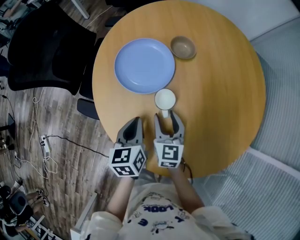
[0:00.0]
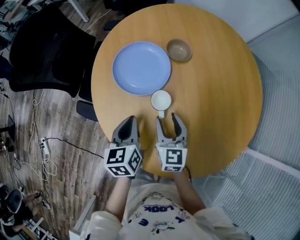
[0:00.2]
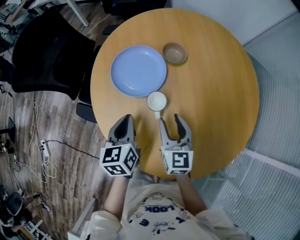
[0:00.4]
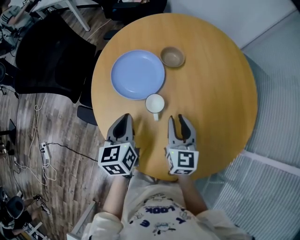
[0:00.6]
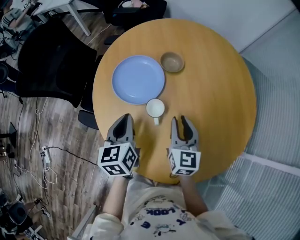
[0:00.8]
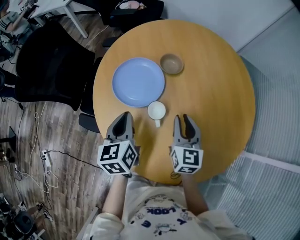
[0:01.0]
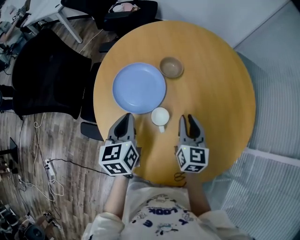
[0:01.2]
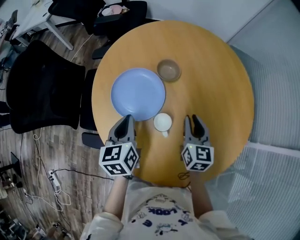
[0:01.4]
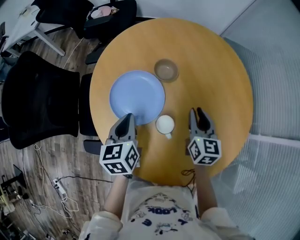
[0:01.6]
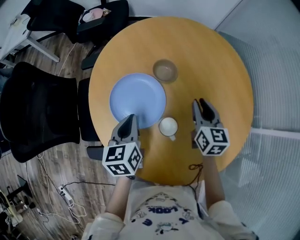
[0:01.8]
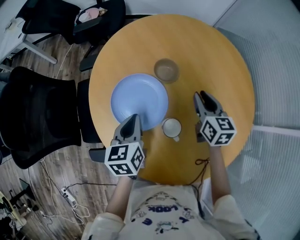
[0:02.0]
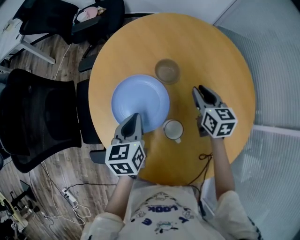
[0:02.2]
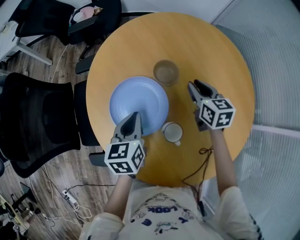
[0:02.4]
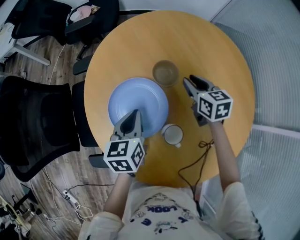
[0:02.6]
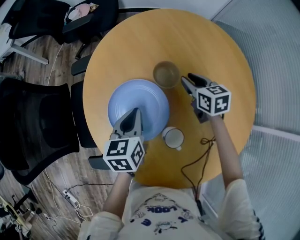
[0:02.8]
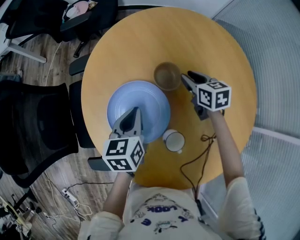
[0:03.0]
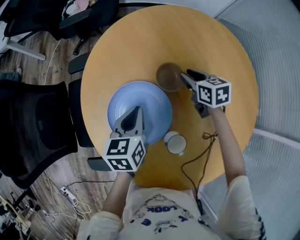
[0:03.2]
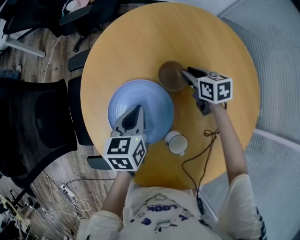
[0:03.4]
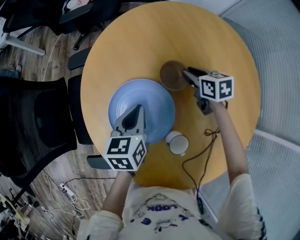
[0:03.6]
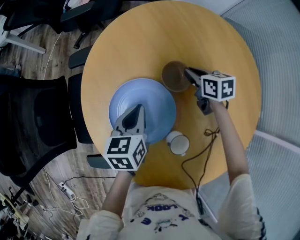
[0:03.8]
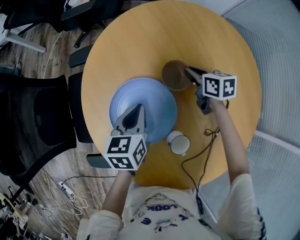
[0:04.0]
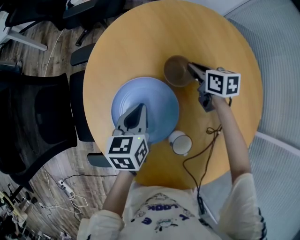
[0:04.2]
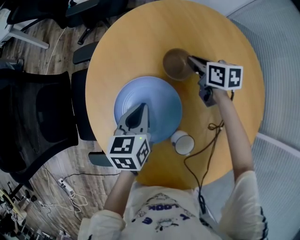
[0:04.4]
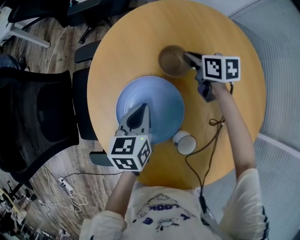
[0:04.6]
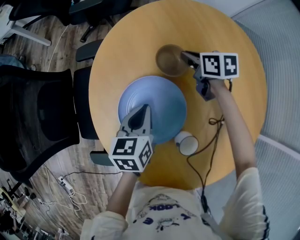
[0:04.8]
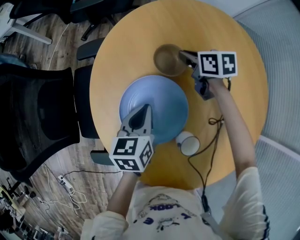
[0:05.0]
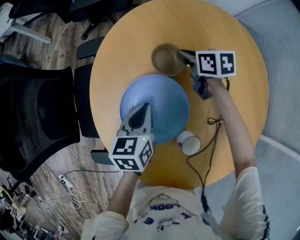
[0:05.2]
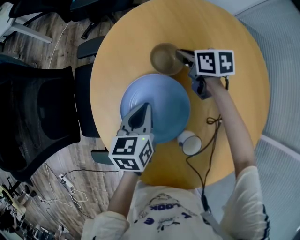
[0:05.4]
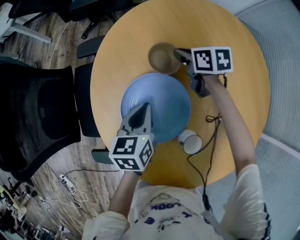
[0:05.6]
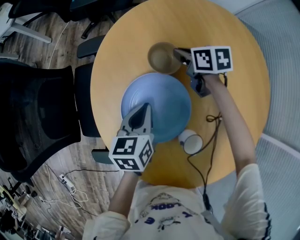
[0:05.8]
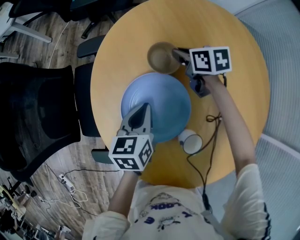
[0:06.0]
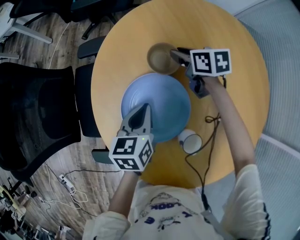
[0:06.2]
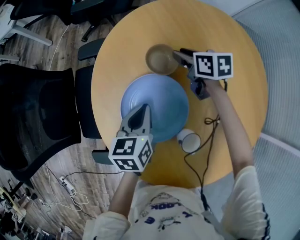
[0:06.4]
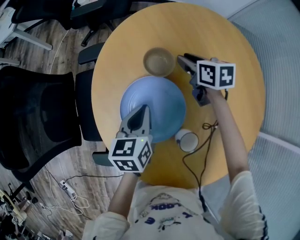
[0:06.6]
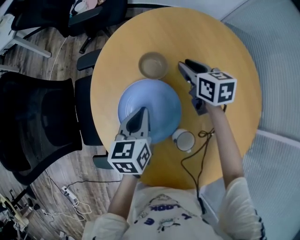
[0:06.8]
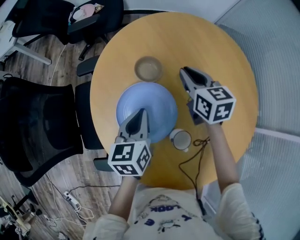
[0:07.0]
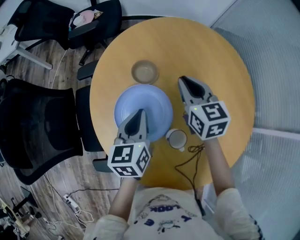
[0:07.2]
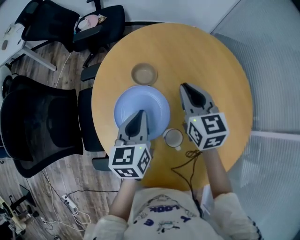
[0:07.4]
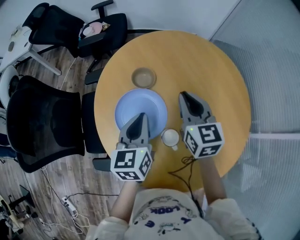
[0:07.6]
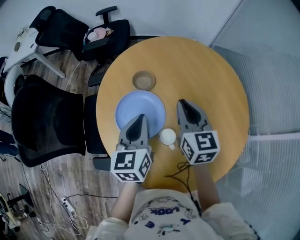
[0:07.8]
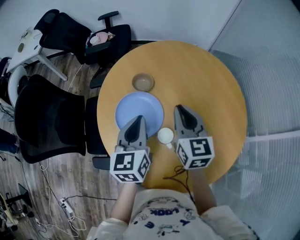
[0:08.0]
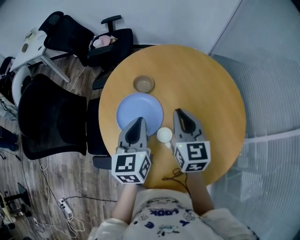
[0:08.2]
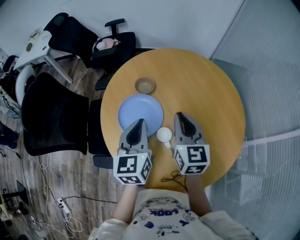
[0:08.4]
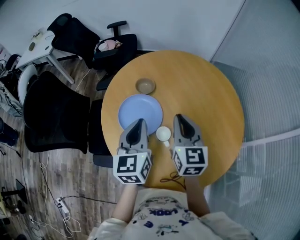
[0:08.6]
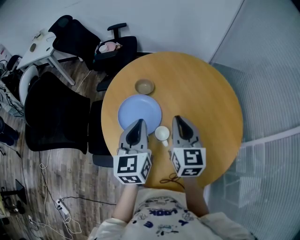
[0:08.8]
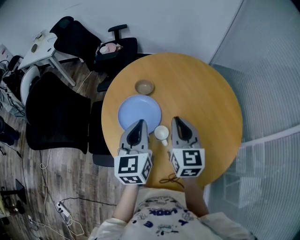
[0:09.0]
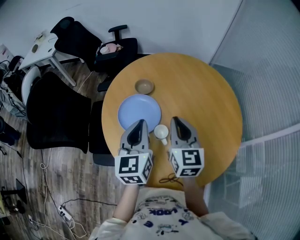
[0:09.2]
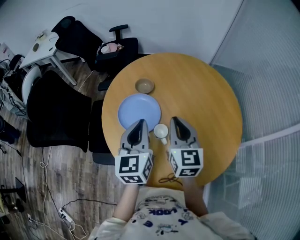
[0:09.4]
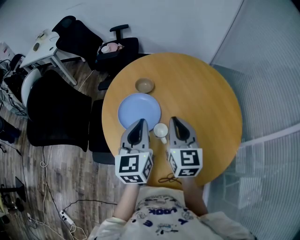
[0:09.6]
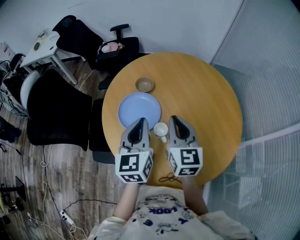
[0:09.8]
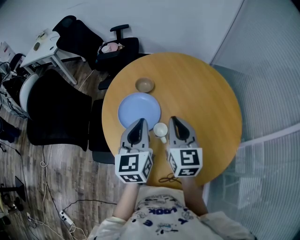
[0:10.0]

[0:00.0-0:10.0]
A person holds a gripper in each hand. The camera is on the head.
0:00.0 to 0:01.4: The left gripper heads forward and upward, covering about 15 cm. The right gripper is displaced to the right, upward and forward by about 15 cm, and closes.
0:01.4 to 0:02.8: The right gripper goes about 20 cm forward, and rotates approximately 20 degrees. The left gripper heads forward, covering some 15 cm.
0:02.8 to 0:04.2: The right gripper shifts roughly 5 cm forward, and closes.
0:04.2 to 0:05.8: The right gripper shifts about 10 cm to the left and forward.
0:05.8 to 0:07.2: The left gripper shifts some 10 cm upward. Meanwhile the right gripper goes approximately 20 cm upward and backward, swivels about 40 degrees, and opens and closes again.
0:07.2 to 0:08.6: The right gripper goes approximately 20 cm backward and upward. The left gripper moves upward and backward, some 20 cm, and turns by about 20 degrees.
0:08.6 to 0:10.0: The grippers move only a little.

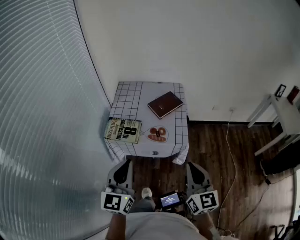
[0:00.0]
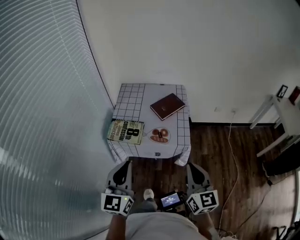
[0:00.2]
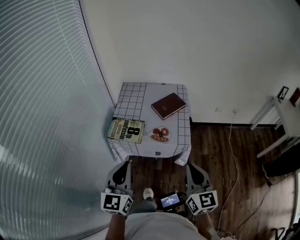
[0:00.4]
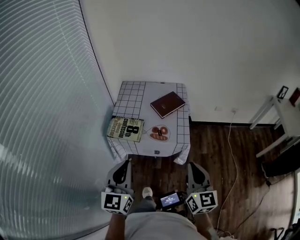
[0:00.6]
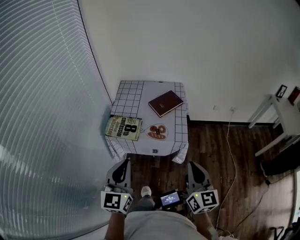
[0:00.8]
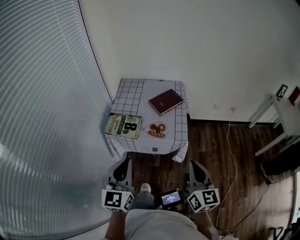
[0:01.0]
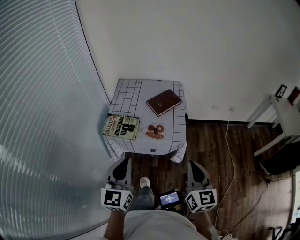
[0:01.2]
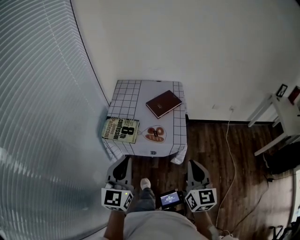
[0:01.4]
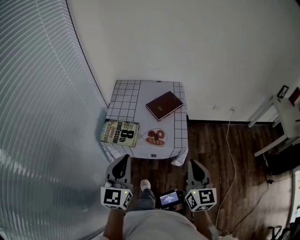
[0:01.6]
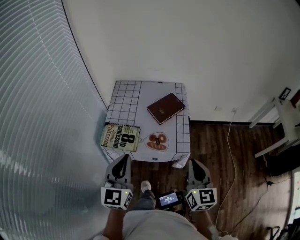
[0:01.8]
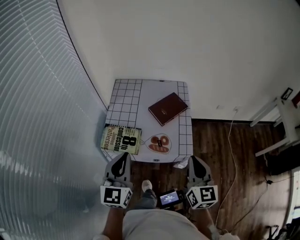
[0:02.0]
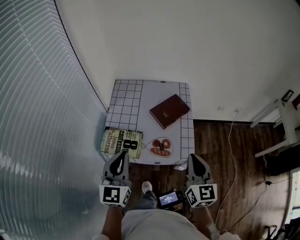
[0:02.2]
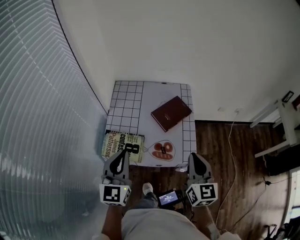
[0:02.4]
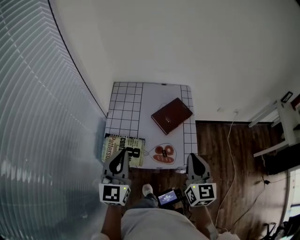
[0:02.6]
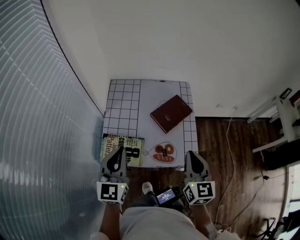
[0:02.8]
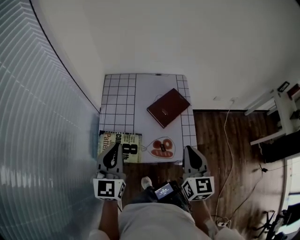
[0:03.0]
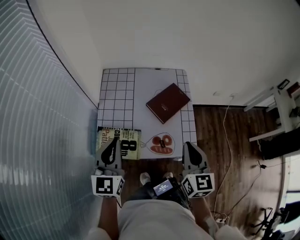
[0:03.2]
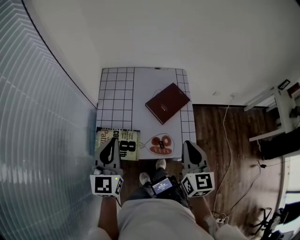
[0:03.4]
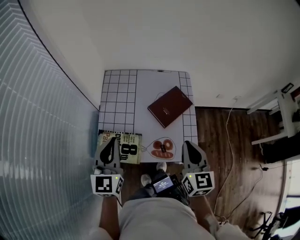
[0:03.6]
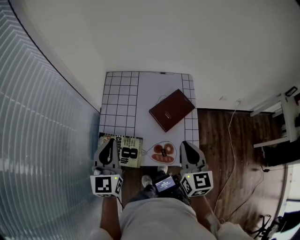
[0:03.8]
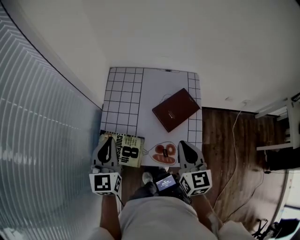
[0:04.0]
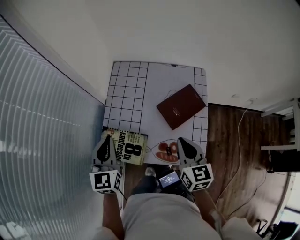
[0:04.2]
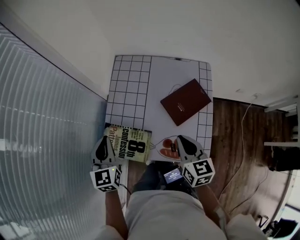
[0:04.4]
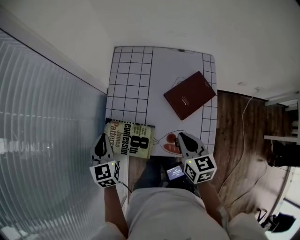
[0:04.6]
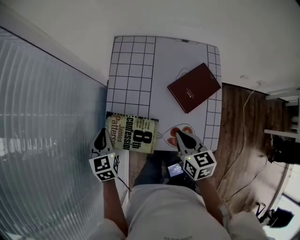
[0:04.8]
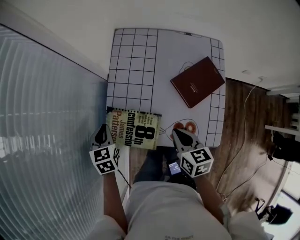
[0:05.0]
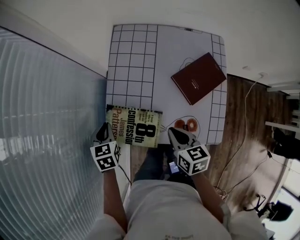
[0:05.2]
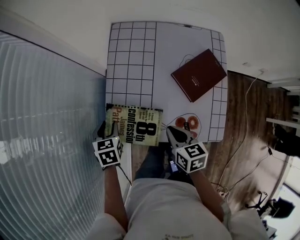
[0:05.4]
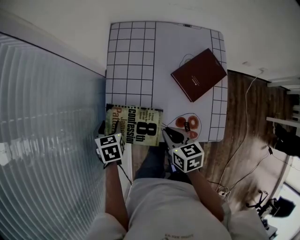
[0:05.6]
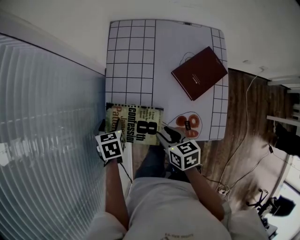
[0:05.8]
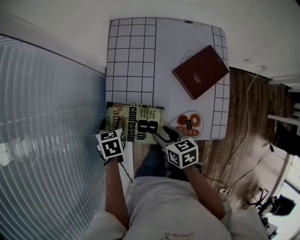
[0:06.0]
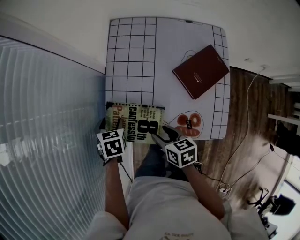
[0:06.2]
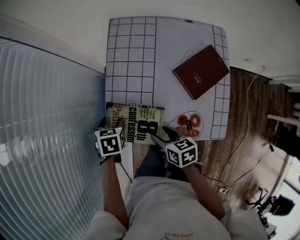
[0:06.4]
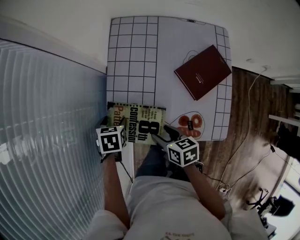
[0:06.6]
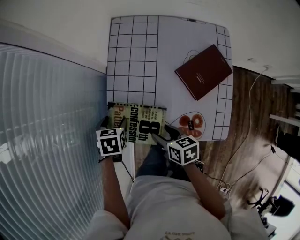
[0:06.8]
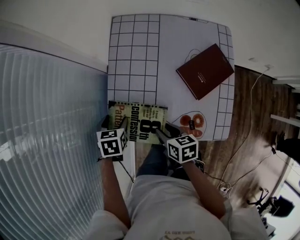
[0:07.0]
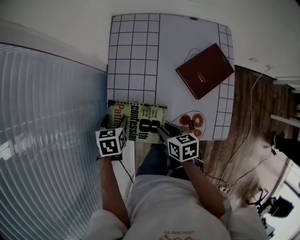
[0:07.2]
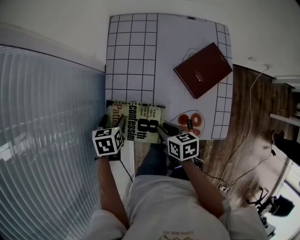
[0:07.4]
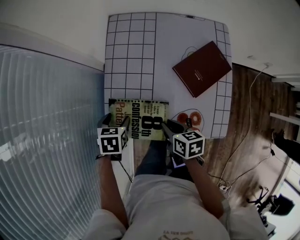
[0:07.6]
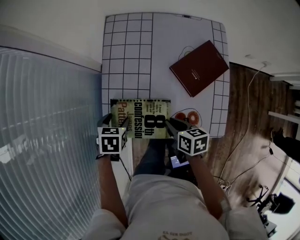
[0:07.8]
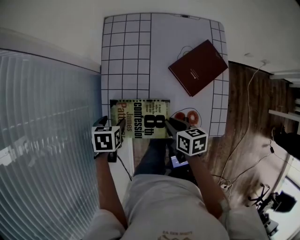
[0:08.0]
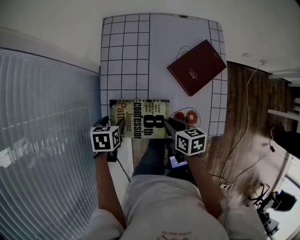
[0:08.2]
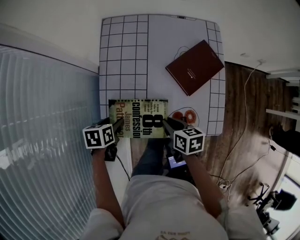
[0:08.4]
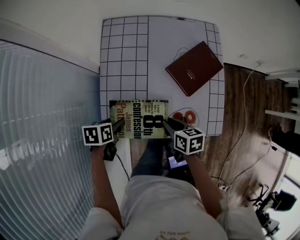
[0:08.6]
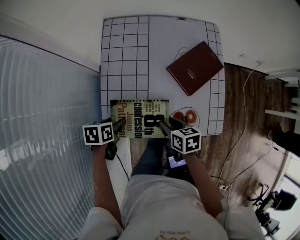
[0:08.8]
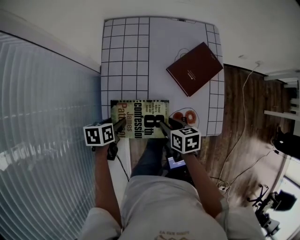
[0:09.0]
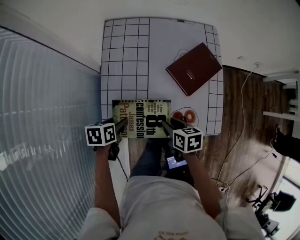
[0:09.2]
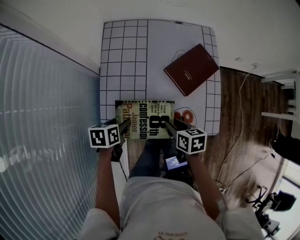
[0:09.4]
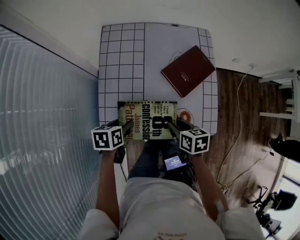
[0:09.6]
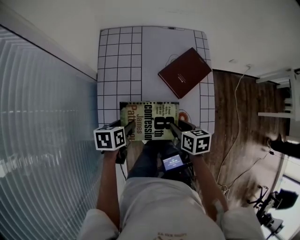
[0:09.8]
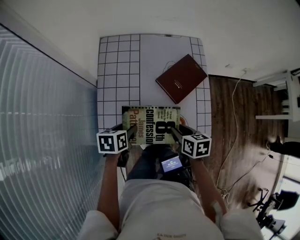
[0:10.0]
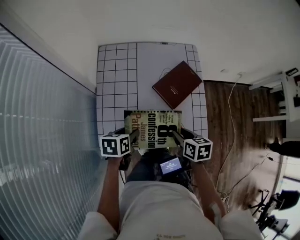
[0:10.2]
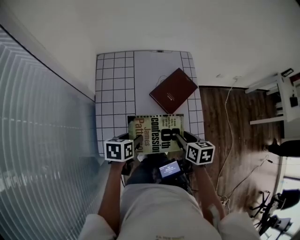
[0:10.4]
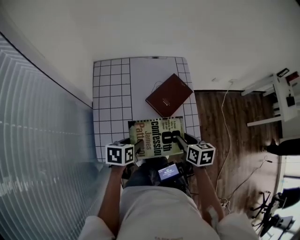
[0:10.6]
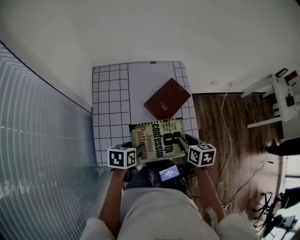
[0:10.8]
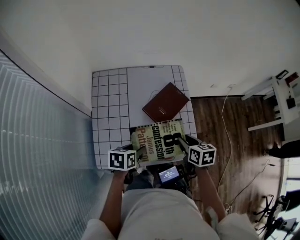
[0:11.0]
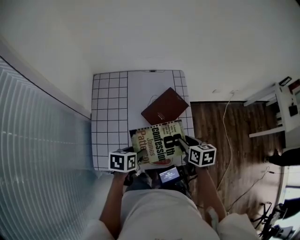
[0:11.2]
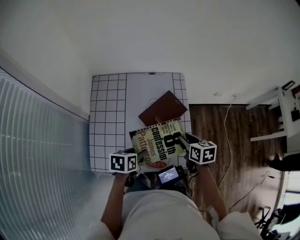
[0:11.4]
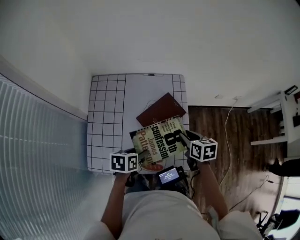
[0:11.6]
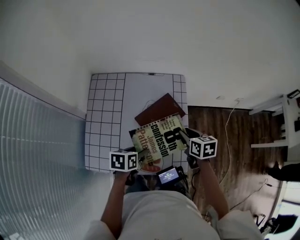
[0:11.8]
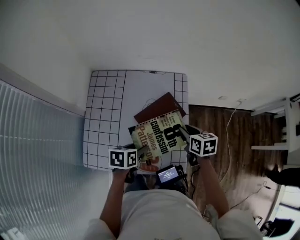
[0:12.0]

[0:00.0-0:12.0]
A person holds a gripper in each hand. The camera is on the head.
0:00.0 to 0:01.6: Both grippers move forward, about 5 cm.
0:01.6 to 0:03.0: The two grippers go approximately 20 cm forward and to the left.
0:03.0 to 0:04.4: The left gripper is displaced downward, to the left and forward by some 15 cm, and changes its angle by about 30 degrees. Meanwhile the right gripper goes some 15 cm forward and downward, and turns by approximately 30 degrees.
0:04.4 to 0:06.0: The right gripper moves to the left and downward, roughly 20 cm, turns by some 30 degrees, and opens up. The left gripper moves downward, approximately 20 cm, angles its fingers downward, by some 40 degrees, and opens up.
0:06.0 to 0:07.6: The right gripper closes.
0:07.6 to 0:09.0: The left gripper changes its angle by about 20 degrees.
0:09.0 to 0:10.4: Both grippers travel together to the right and upward, some 15 cm.
0:10.4 to 0:12.0: The left gripper shifts approximately 15 cm to the right and forward. Meanwhile the right gripper moves forward and to the right, about 20 cm.

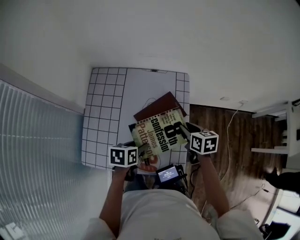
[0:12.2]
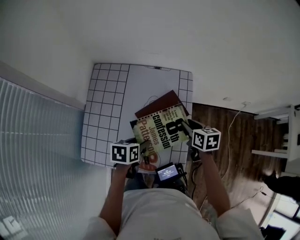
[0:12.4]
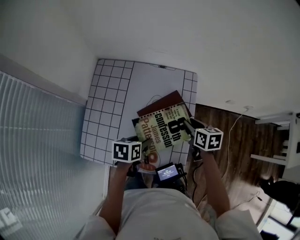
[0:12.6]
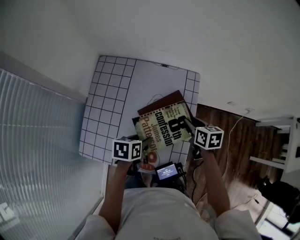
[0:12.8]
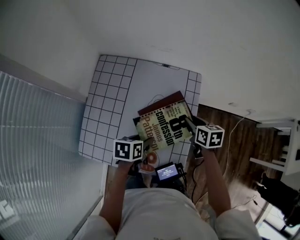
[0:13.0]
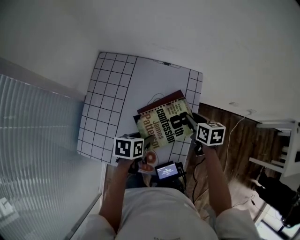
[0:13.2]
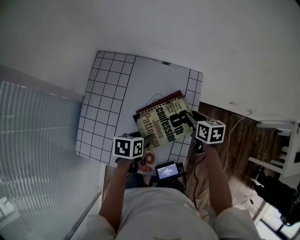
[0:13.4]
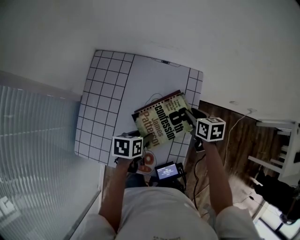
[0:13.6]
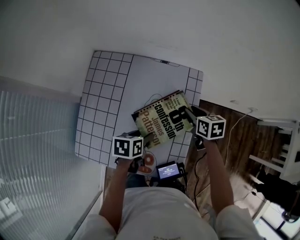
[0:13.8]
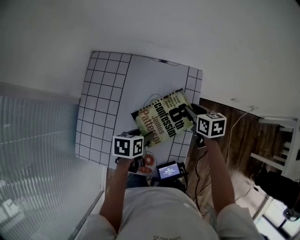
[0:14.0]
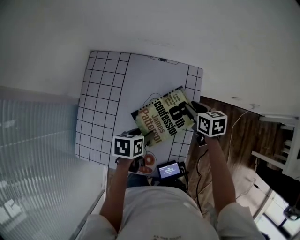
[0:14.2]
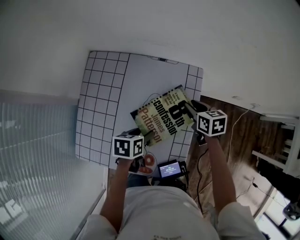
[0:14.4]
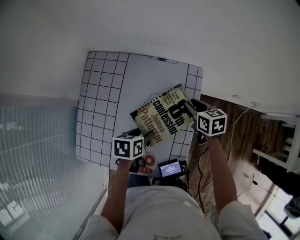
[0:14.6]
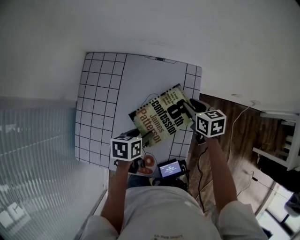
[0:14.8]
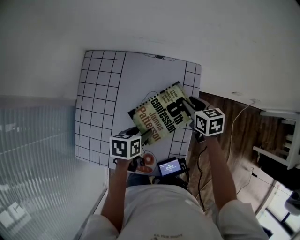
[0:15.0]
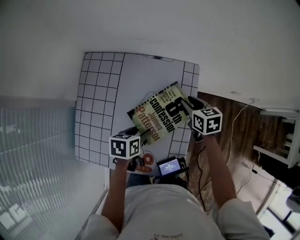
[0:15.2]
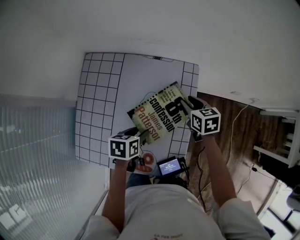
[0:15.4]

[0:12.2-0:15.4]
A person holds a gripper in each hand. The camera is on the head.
0:12.2 to 0:13.8: The right gripper travels forward by some 10 cm. The left gripper is displaced forward by approximately 5 cm.
0:13.8 to 0:15.4: The grippers stay close to where they were, moving slightly.
